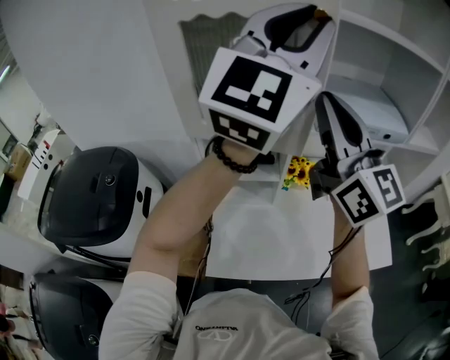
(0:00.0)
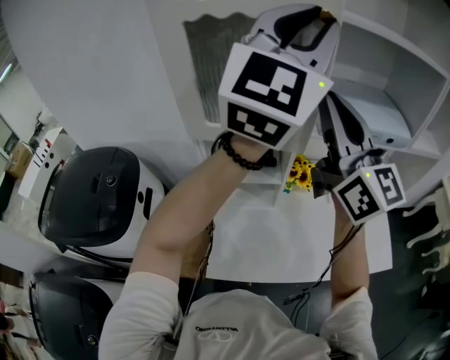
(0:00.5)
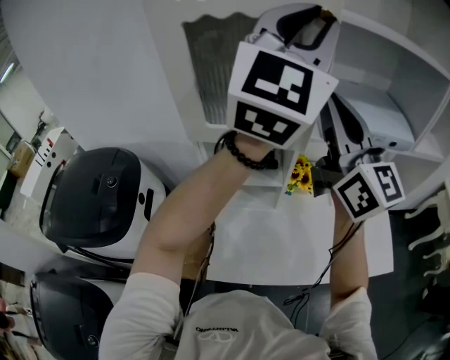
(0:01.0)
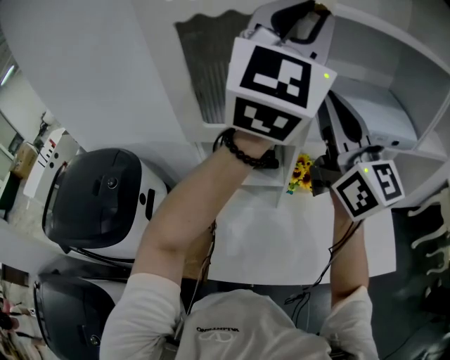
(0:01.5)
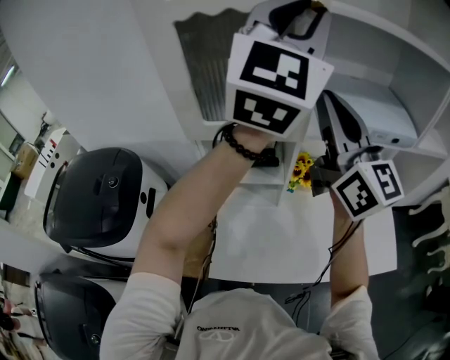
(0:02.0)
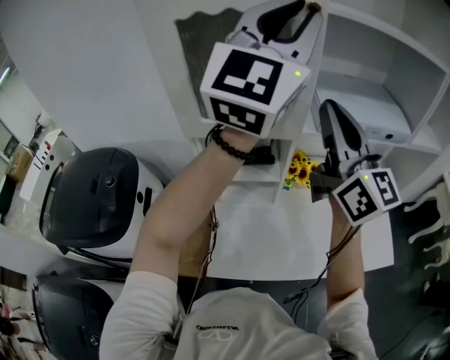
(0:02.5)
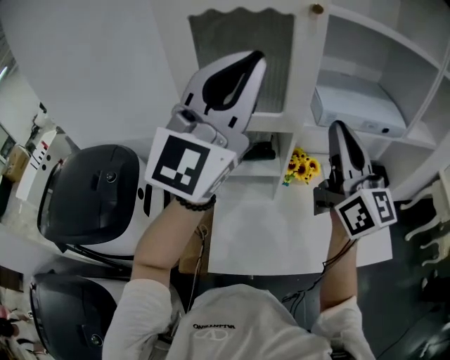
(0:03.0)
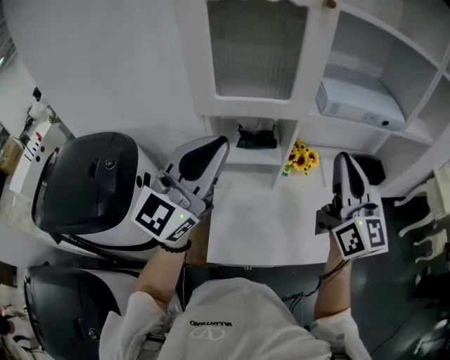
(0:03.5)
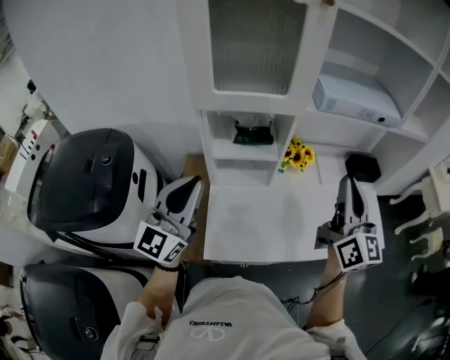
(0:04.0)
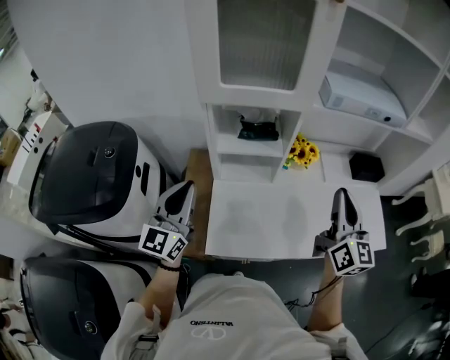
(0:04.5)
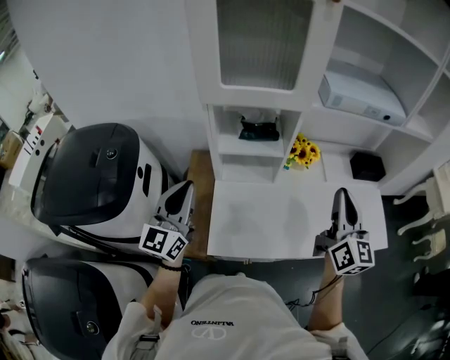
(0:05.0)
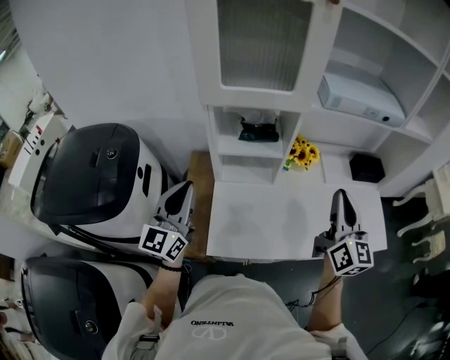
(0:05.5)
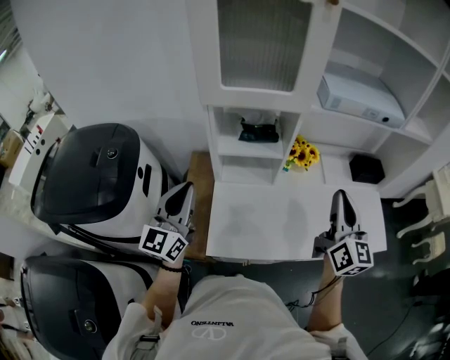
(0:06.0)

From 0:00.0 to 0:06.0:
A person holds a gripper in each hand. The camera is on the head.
From 0:00.0 to 0:02.0: The left gripper shifts some 5 cm forward.
From 0:02.0 to 0:04.0: The right gripper travels downward, backward and to the right by some 25 cm, and swivels some 20 degrees; the left gripper shifts approximately 40 cm downward, backward and to the left, and turns by approximately 20 degrees.
From 0:04.0 to 0:06.0: The two grippers go some 5 cm downward.

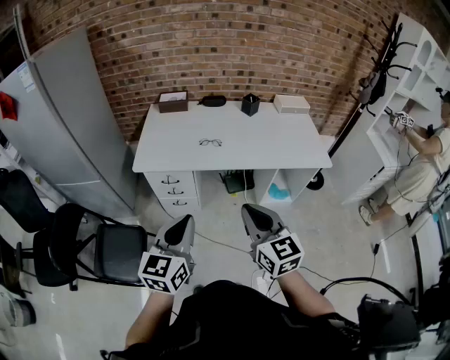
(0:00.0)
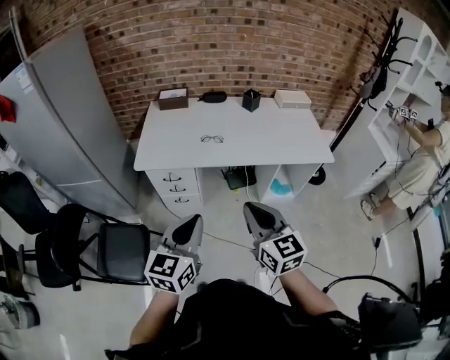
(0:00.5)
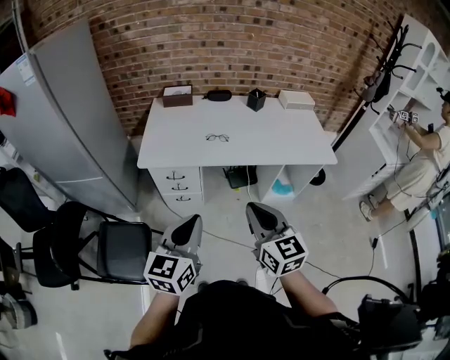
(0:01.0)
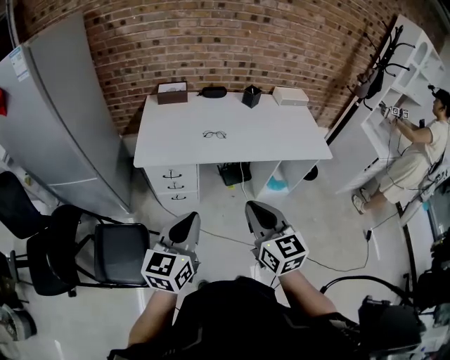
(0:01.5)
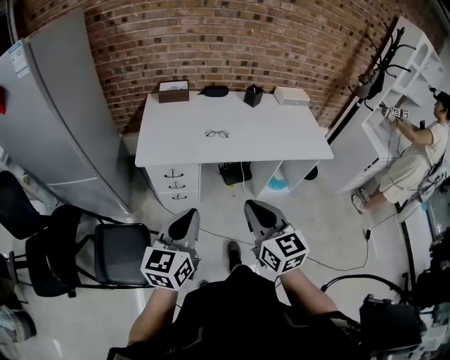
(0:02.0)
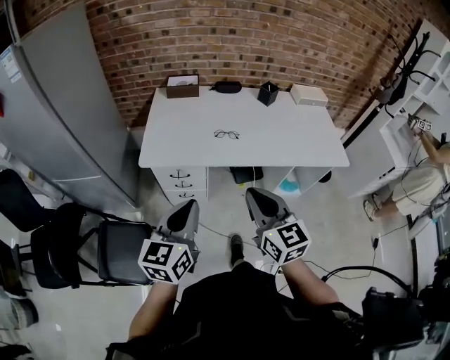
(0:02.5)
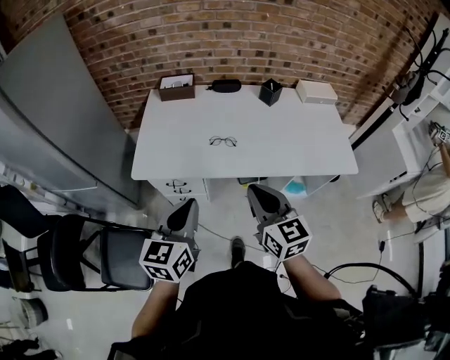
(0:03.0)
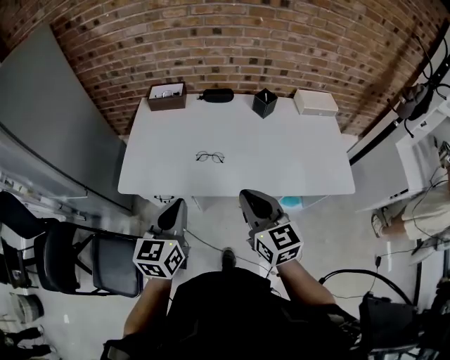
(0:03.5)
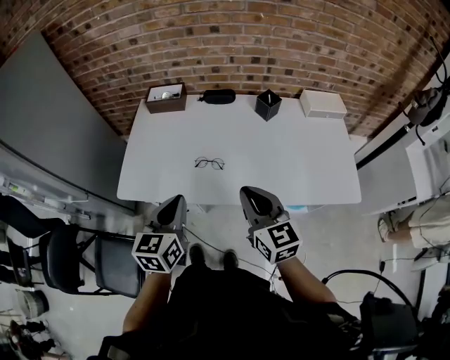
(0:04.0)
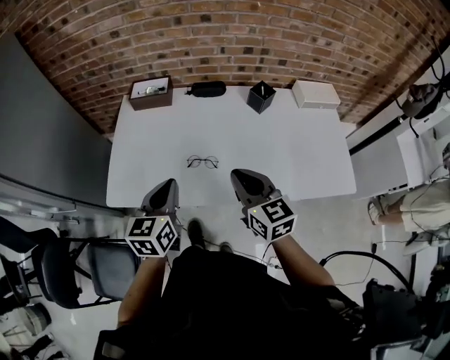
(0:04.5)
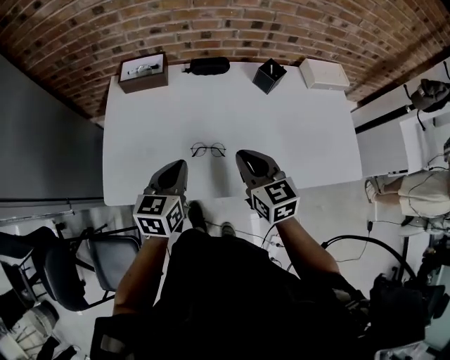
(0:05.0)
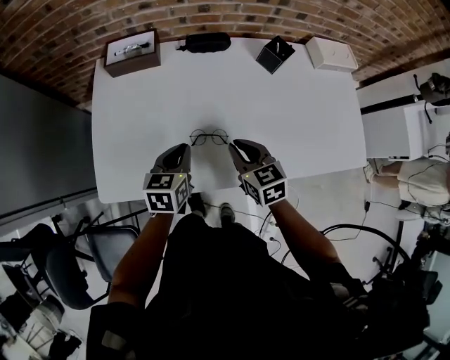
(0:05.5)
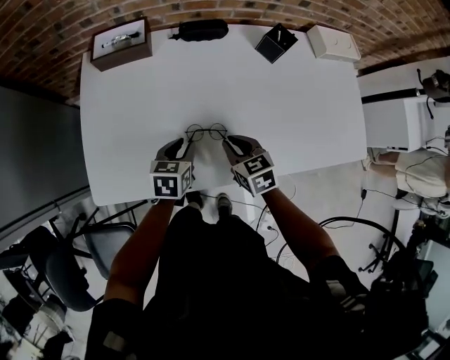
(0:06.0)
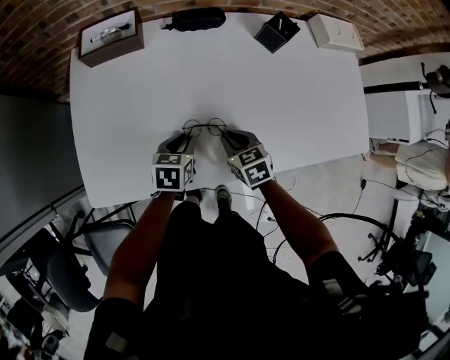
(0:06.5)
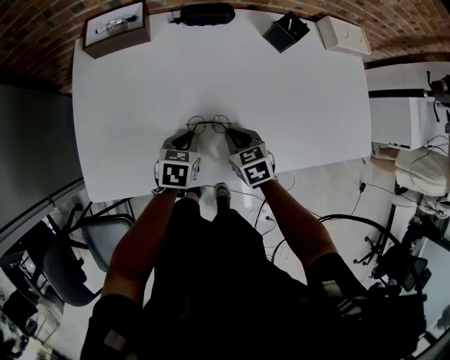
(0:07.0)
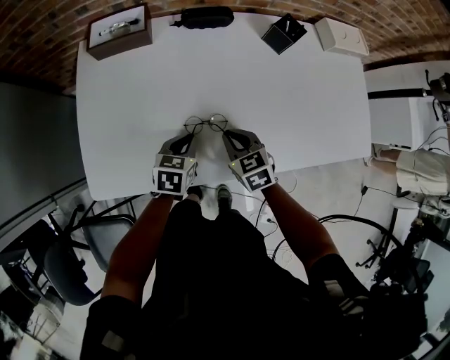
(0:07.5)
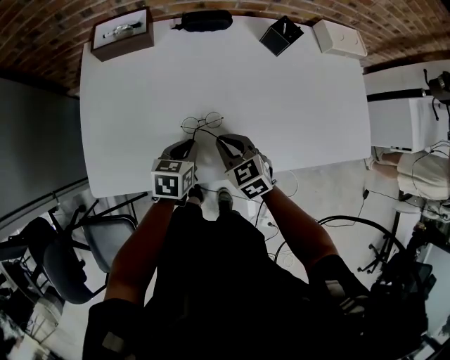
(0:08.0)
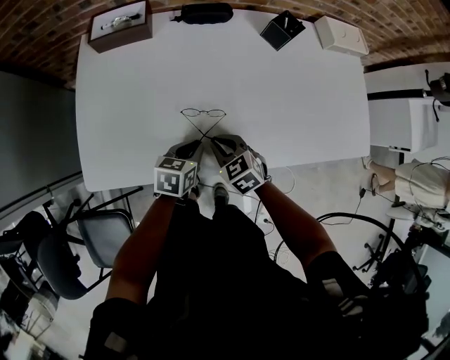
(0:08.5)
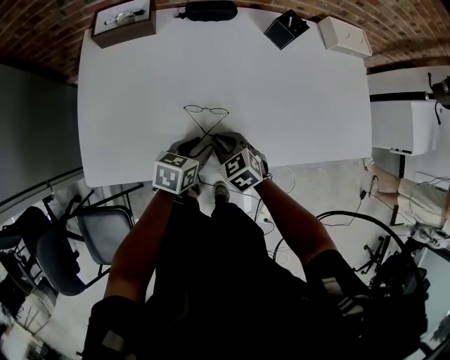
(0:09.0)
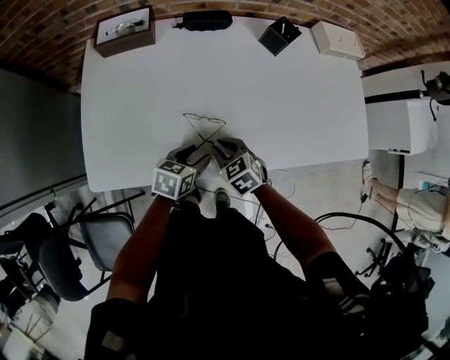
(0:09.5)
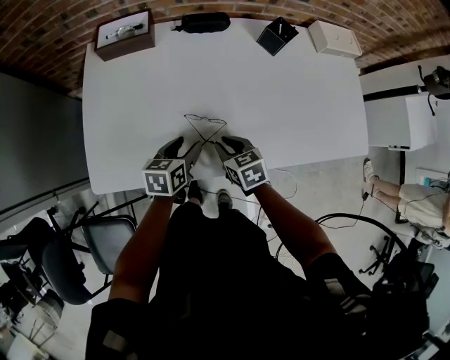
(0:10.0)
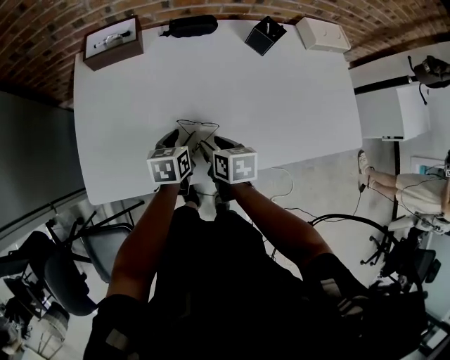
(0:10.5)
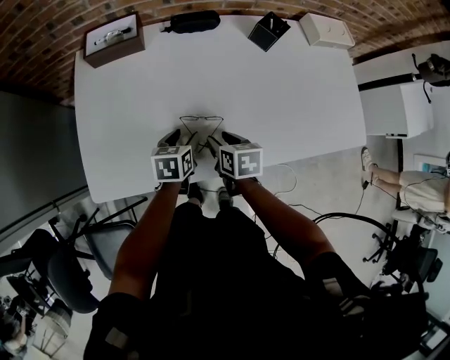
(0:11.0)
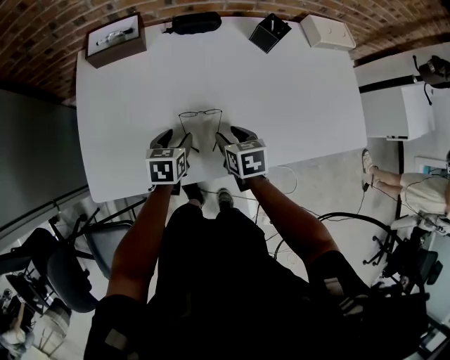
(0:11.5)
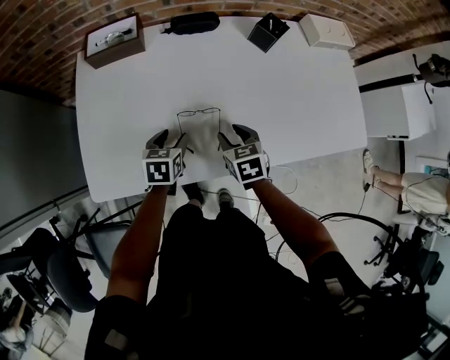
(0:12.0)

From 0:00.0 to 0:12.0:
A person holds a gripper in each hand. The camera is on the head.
From 0:00.0 to 0:02.0: Both grippers travel together to the left, about 10 cm.
From 0:02.0 to 0:04.0: The two grippers go some 35 cm forward and to the right.
From 0:04.0 to 0:06.0: Both grippers move downward and forward, roughly 30 cm. The right gripper tilts its fingers roughly 30 degrees downward, while the left gripper changes its angle by some 30 degrees, and opens up.
From 0:06.0 to 0:08.0: The grippers move only a little.
From 0:08.0 to 0:10.0: The right gripper changes its angle by approximately 20 degrees, while the left gripper opens.
From 0:10.0 to 0:12.0: The left gripper shifts by approximately 5 cm, while the right gripper ends up some 5 cm from where it was, and opens its fingers.

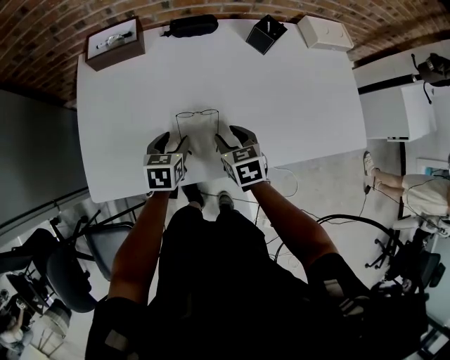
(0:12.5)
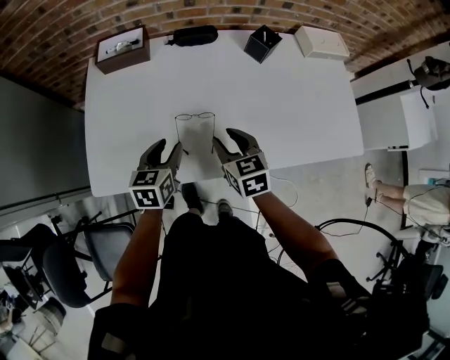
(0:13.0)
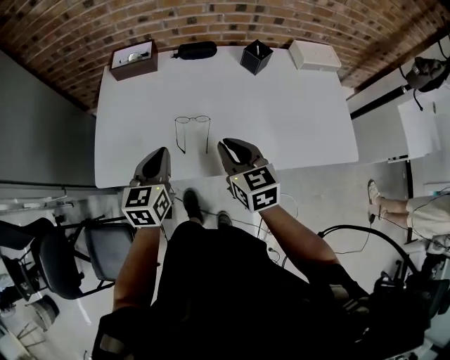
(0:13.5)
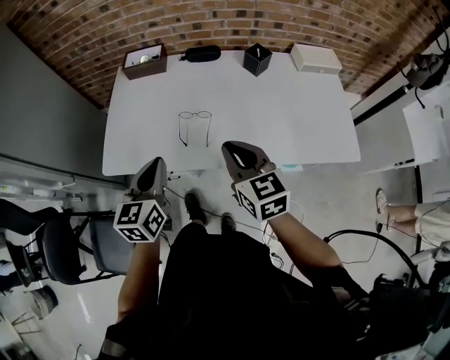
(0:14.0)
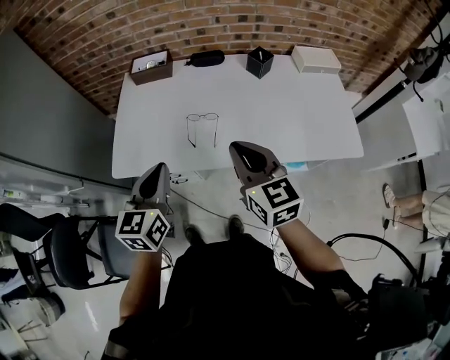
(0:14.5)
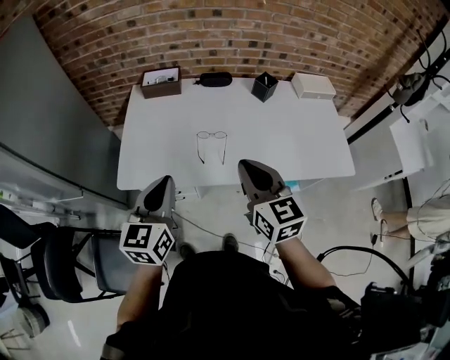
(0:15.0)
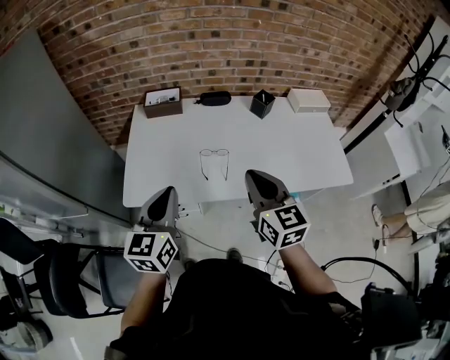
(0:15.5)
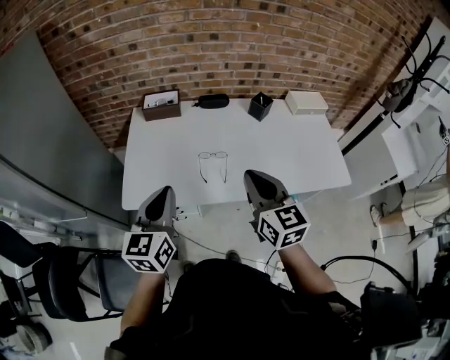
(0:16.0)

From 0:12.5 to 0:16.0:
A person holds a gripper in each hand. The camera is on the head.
From 0:12.5 to 0:14.5: The grippers both shift upward and backward by some 35 cm. The left gripper turns by some 30 degrees, and closes its fingers; the right gripper tips its fingers upward by approximately 30 degrees, and closes.
From 0:14.5 to 0:16.0: The right gripper shifts by about 5 cm. The left gripper shifts about 10 cm to the left and upward.

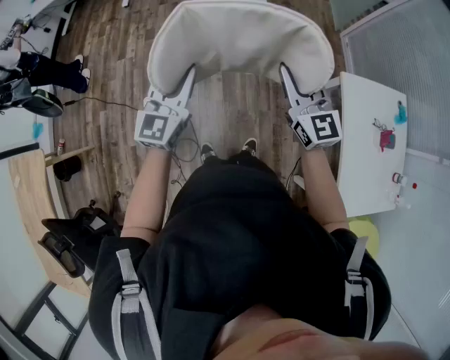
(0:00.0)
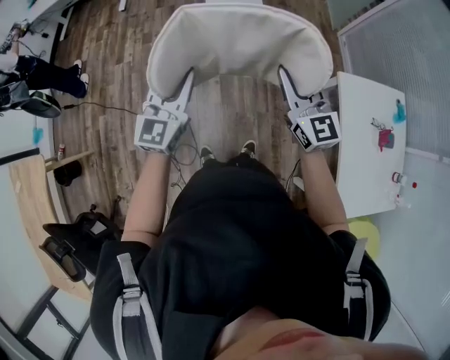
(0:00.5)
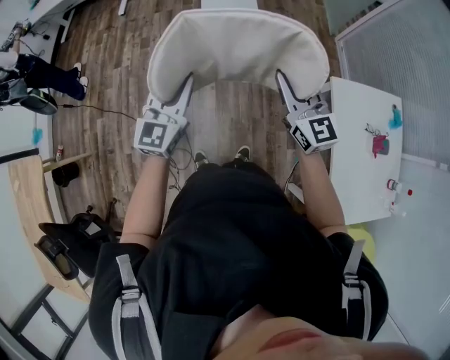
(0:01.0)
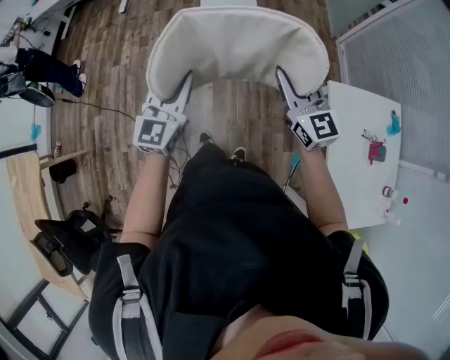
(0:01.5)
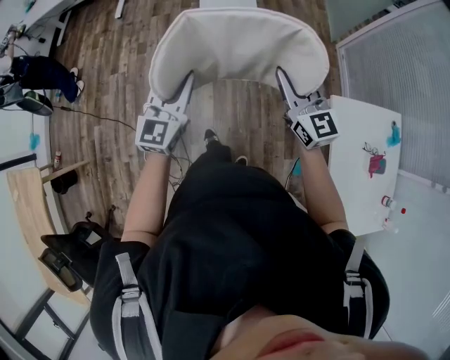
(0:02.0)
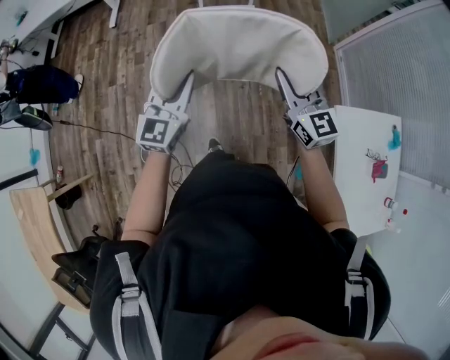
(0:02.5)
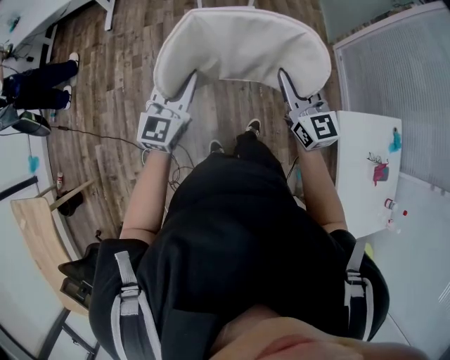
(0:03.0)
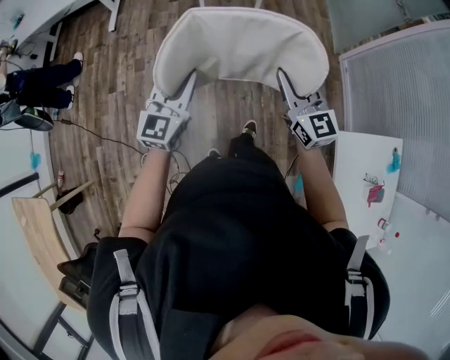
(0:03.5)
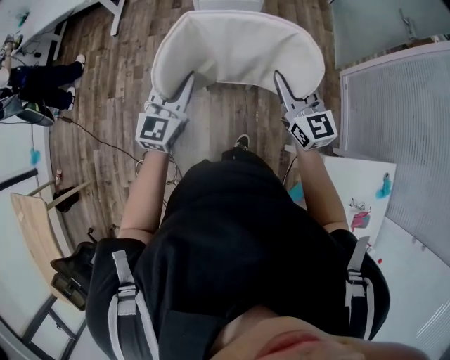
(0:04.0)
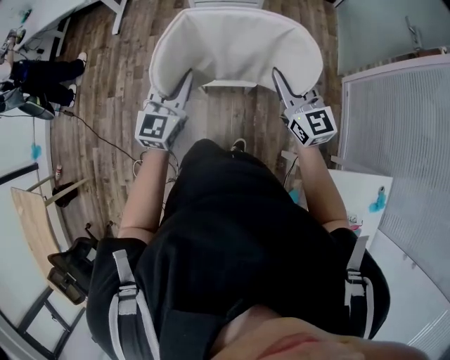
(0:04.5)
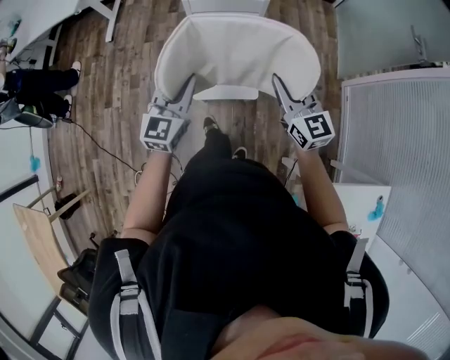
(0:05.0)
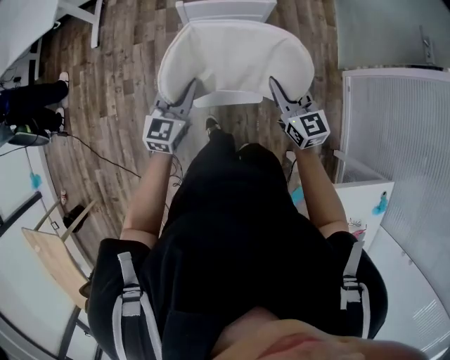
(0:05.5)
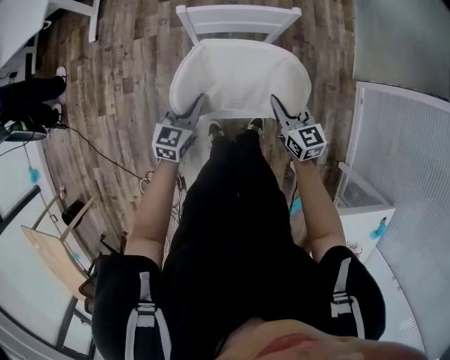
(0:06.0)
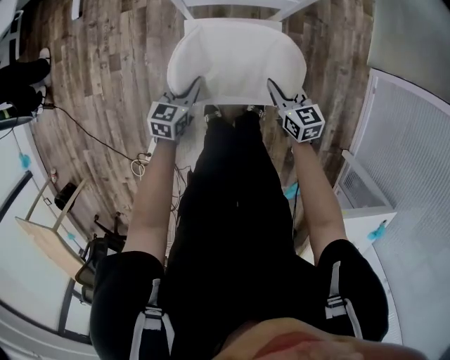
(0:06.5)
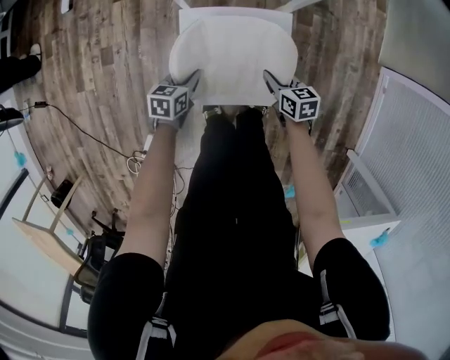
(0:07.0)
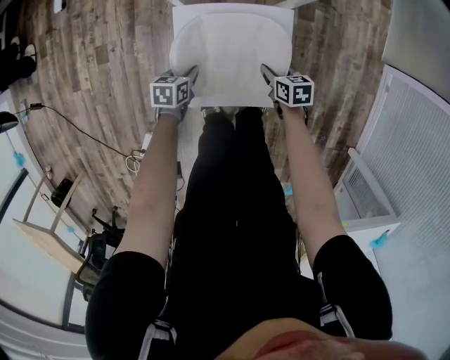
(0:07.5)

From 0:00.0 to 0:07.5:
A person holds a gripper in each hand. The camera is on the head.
From 0:00.0 to 0:02.0: Both grippers travel together forward and to the right, some 15 cm.
From 0:02.0 to 0:04.0: Both grippers move forward, about 30 cm.
From 0:04.0 to 0:05.5: Both grippers travel together forward and downward, some 30 cm.
From 0:05.5 to 0:07.5: The grippers both shift downward by approximately 60 cm. The right gripper tips its fingers downward by roughly 40 degrees. The left gripper points its fingers about 40 degrees further downward.
